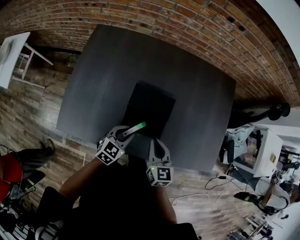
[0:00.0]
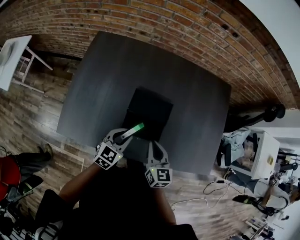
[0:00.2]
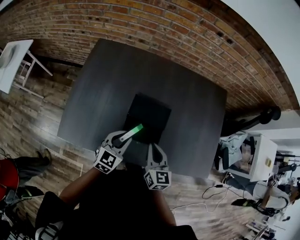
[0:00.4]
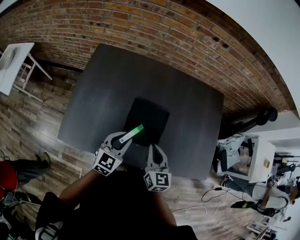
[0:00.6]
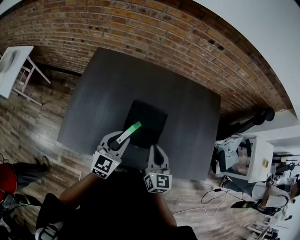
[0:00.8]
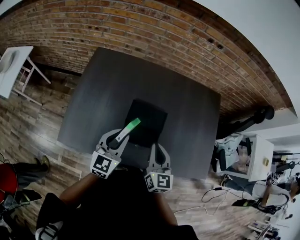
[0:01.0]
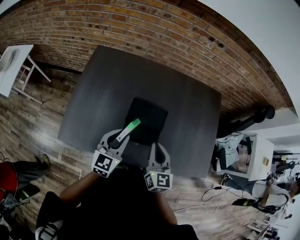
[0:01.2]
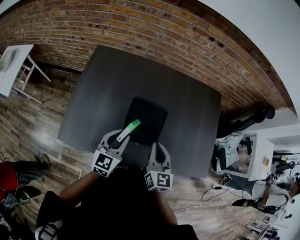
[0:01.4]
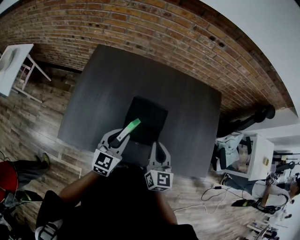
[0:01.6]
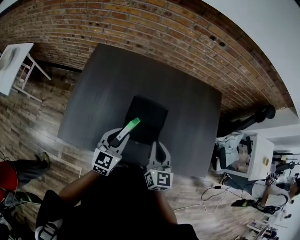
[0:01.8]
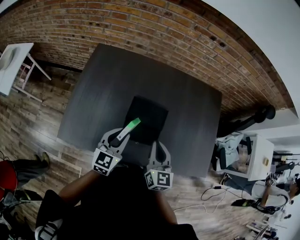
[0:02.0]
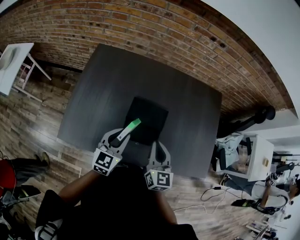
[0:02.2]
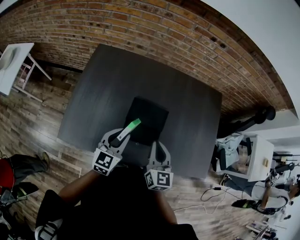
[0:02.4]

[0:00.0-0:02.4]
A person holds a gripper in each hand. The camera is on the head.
0.0 to 1.2 s: The grippers both shift upward by approximately 15 cm. The left gripper rotates approximately 30 degrees.
1.2 to 2.4 s: There are only small adjustments of the grippers.

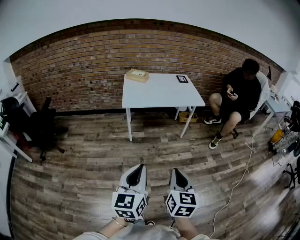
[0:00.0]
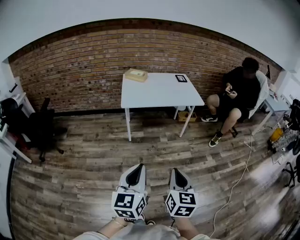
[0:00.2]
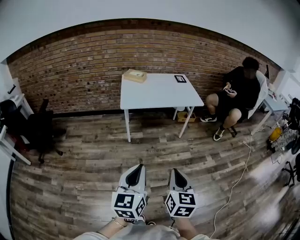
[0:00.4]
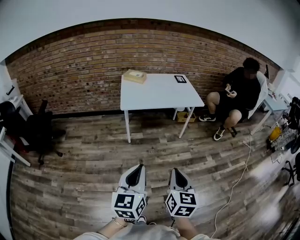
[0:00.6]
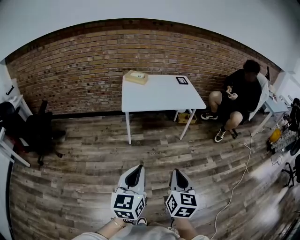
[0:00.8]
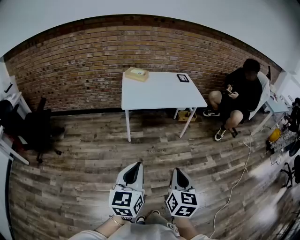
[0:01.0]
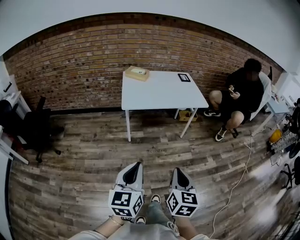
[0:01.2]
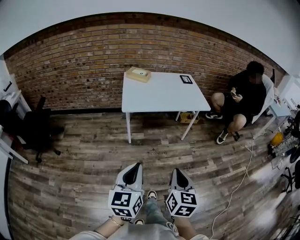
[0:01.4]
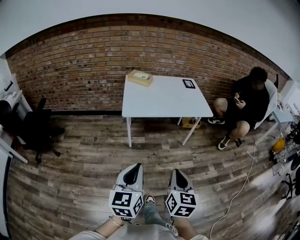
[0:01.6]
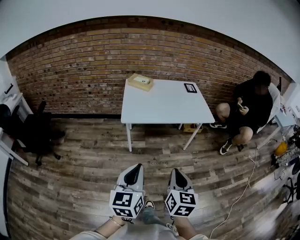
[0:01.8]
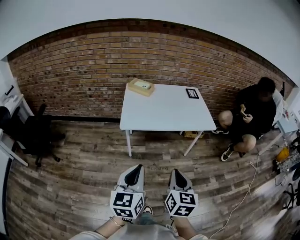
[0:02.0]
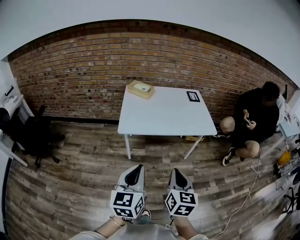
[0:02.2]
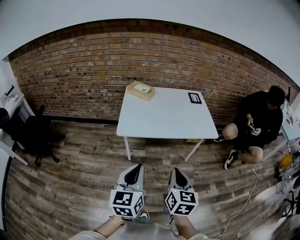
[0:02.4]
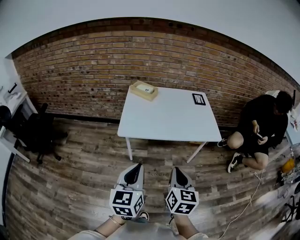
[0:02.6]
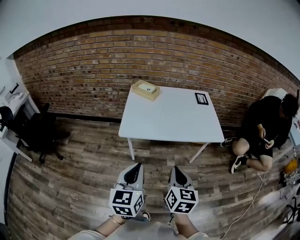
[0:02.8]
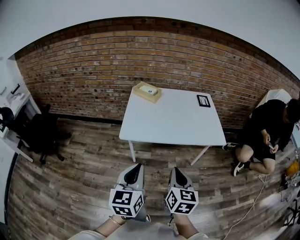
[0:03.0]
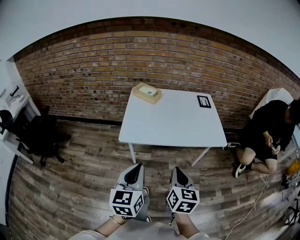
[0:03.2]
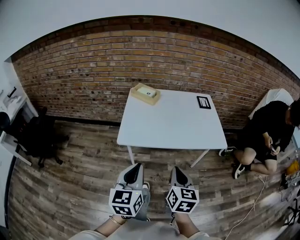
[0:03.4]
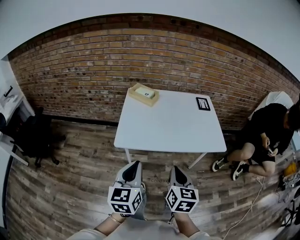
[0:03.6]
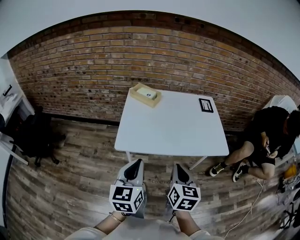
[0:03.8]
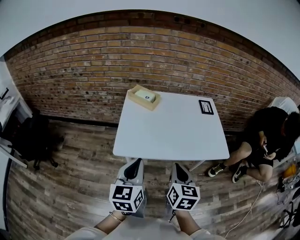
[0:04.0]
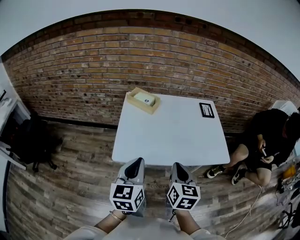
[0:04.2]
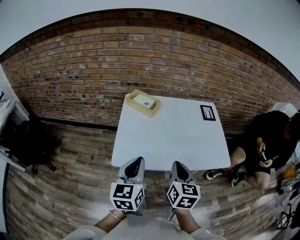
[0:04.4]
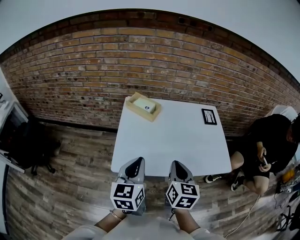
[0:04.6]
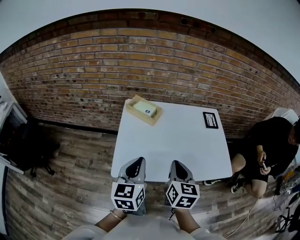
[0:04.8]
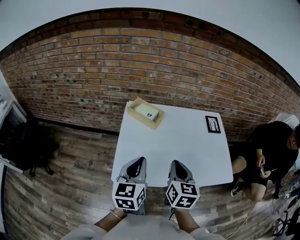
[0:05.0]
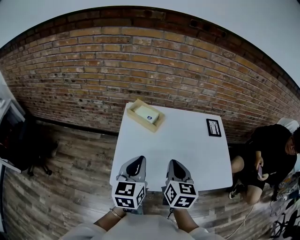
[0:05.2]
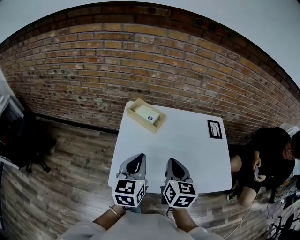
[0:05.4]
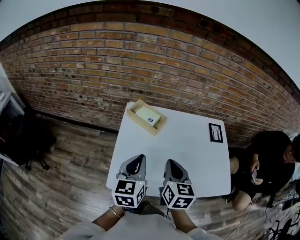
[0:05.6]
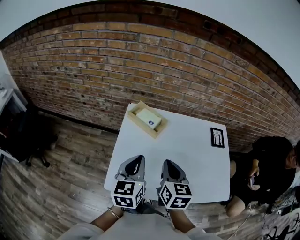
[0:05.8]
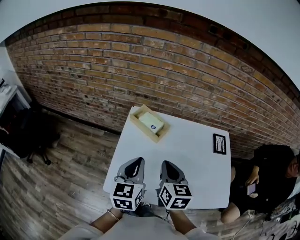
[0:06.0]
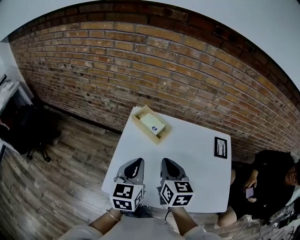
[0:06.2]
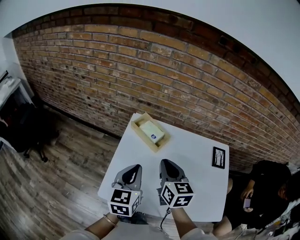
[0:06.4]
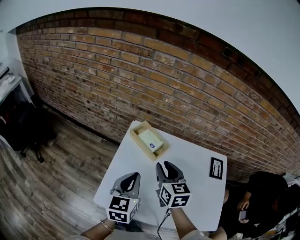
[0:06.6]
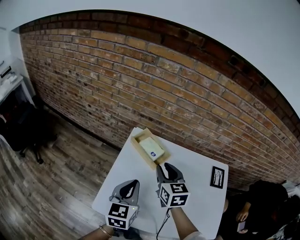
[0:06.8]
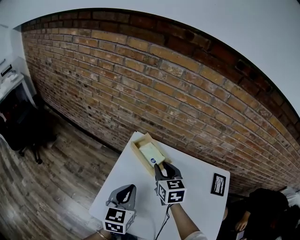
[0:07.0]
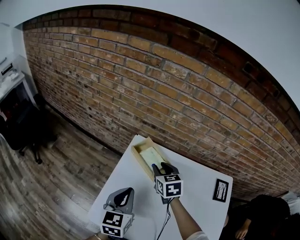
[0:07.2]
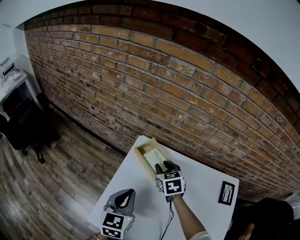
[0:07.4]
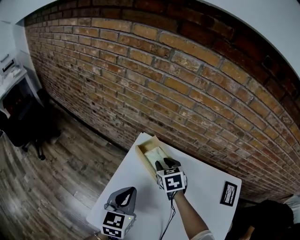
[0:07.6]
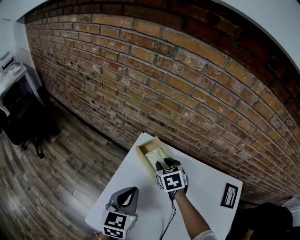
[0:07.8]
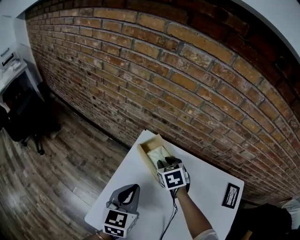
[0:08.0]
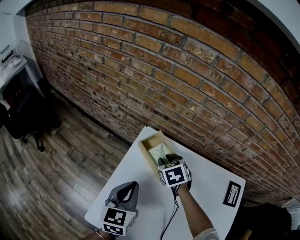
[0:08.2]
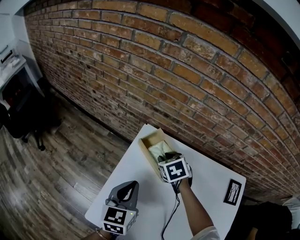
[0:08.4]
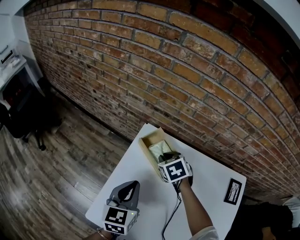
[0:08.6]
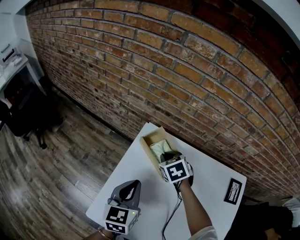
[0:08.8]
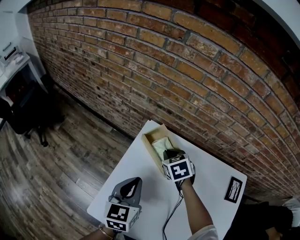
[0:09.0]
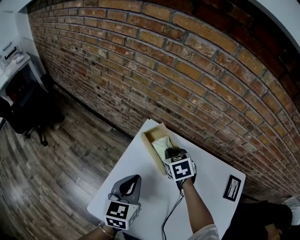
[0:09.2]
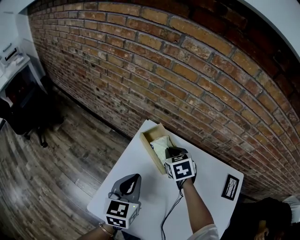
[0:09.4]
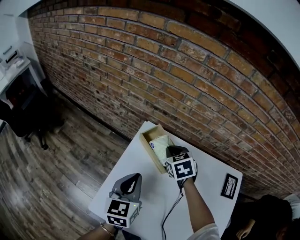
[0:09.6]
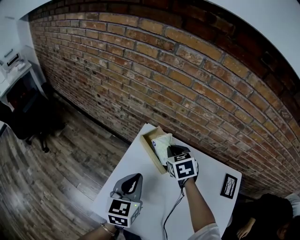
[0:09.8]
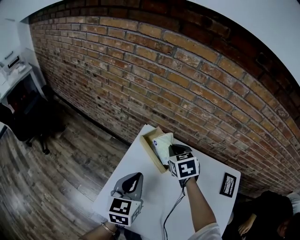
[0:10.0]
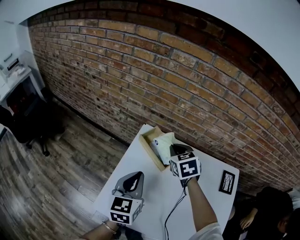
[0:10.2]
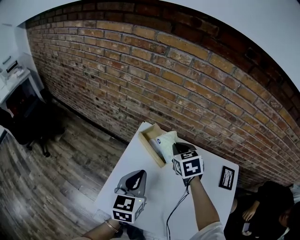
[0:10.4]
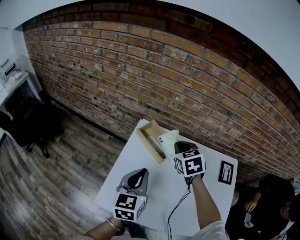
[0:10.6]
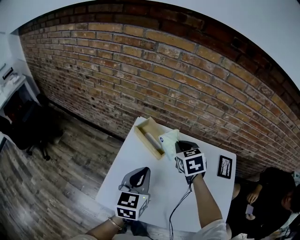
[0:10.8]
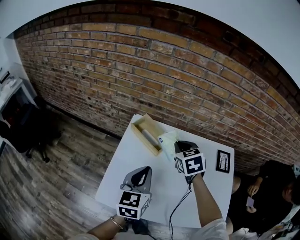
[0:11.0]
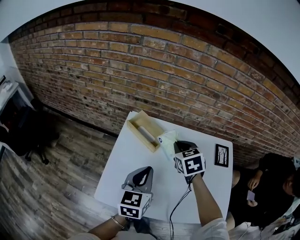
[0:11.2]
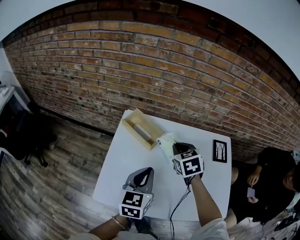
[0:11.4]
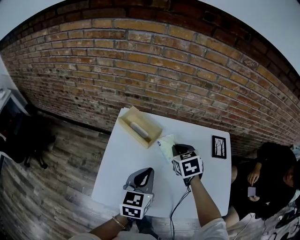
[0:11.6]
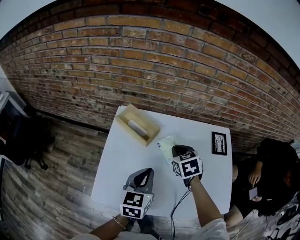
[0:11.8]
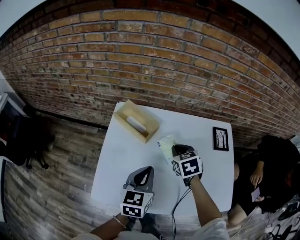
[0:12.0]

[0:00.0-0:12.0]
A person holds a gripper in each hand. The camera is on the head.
0.0 to 1.6 s: The two grippers go some 15 cm forward.
1.6 to 3.0 s: The grippers both shift forward by roughly 25 cm.
3.0 to 4.4 s: Both grippers move forward, approximately 25 cm.
4.4 to 6.0 s: Both grippers move forward, some 20 cm.
6.0 to 7.6 s: The right gripper goes some 30 cm forward and downward, swivels roughly 40 degrees, and opens its fingers. Meanwhile the left gripper moves forward and downward, about 15 cm.
7.6 to 9.0 s: The right gripper closes up.
9.0 to 10.4 s: The right gripper travels upward by approximately 15 cm, while the left gripper travels upward by roughly 5 cm.
10.4 to 12.0 s: The left gripper shifts some 15 cm to the right, downward and backward. Meanwhile the right gripper shifts roughly 20 cm to the right, backward and downward.

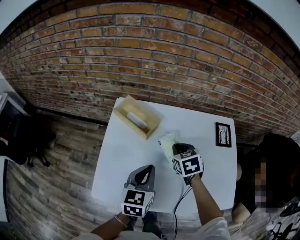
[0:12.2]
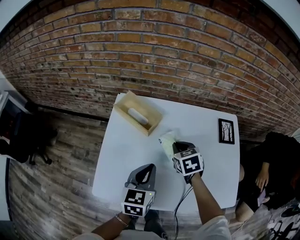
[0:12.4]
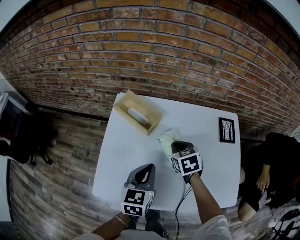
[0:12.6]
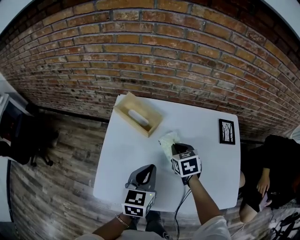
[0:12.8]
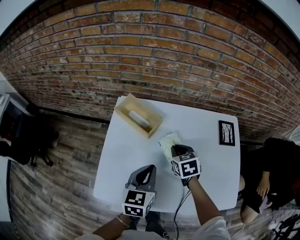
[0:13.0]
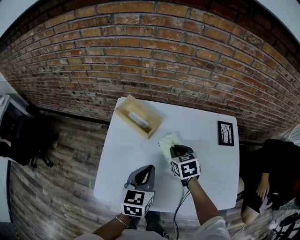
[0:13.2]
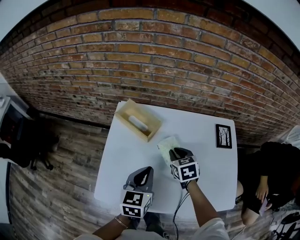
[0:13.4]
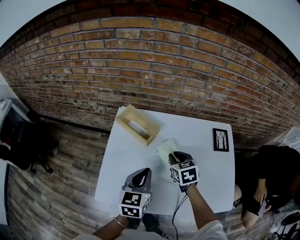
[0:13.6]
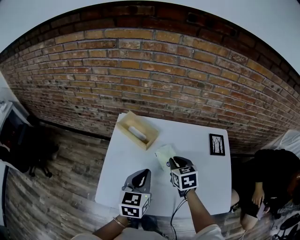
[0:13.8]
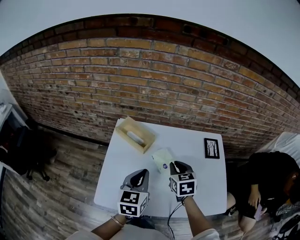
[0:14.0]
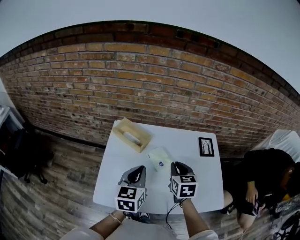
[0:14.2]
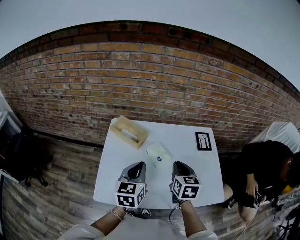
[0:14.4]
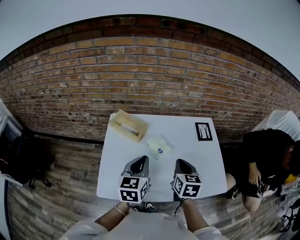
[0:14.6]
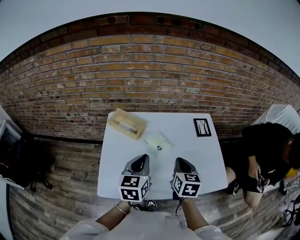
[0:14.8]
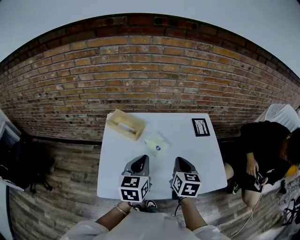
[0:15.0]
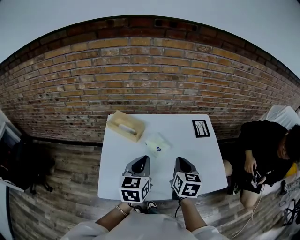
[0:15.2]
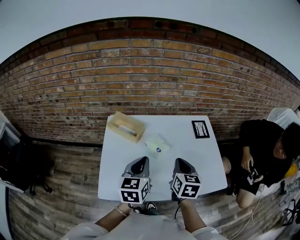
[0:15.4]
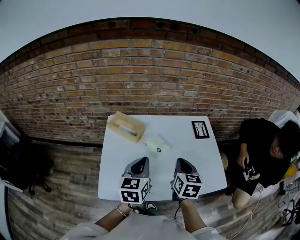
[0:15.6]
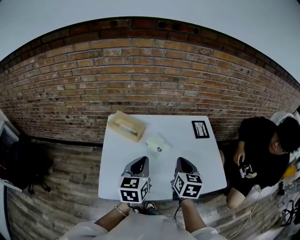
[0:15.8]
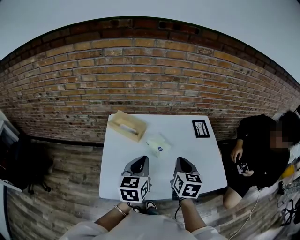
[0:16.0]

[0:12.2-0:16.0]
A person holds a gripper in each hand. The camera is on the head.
12.2 to 13.4 s: The grippers move only a little.
13.4 to 14.8 s: The left gripper heads upward, covering approximately 10 cm; the right gripper travels backward, upward and to the right by roughly 20 cm, and turns by about 30 degrees.
14.8 to 16.0 s: The grippers stay close to where they were, moving slightly.

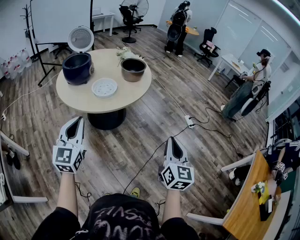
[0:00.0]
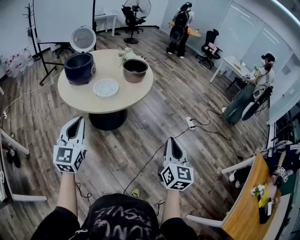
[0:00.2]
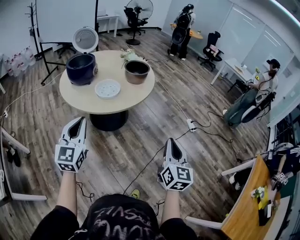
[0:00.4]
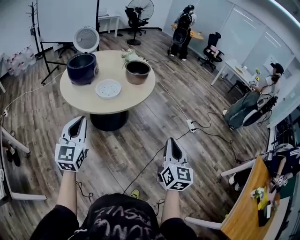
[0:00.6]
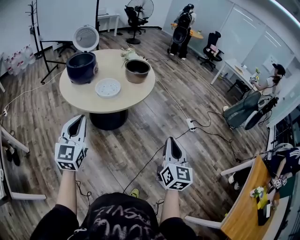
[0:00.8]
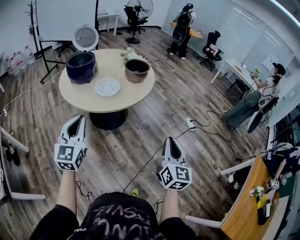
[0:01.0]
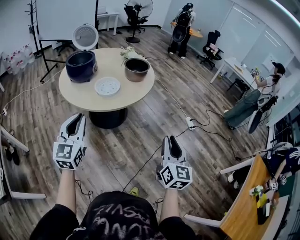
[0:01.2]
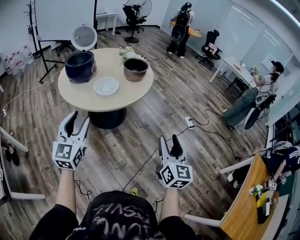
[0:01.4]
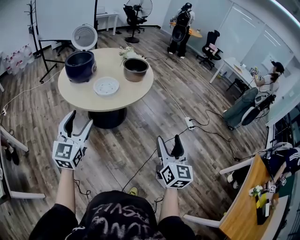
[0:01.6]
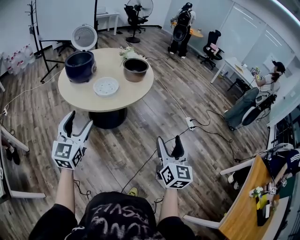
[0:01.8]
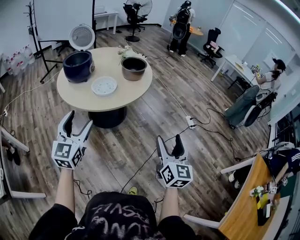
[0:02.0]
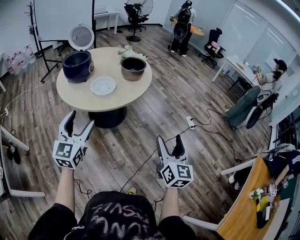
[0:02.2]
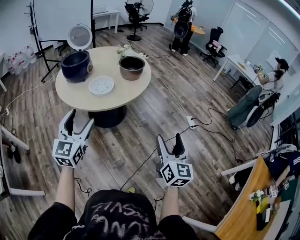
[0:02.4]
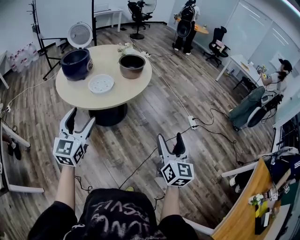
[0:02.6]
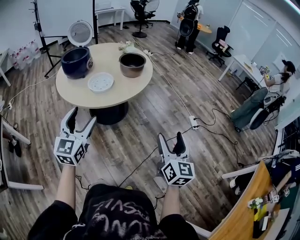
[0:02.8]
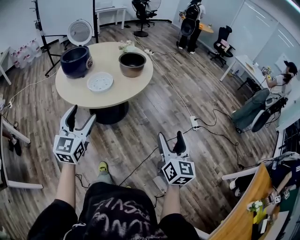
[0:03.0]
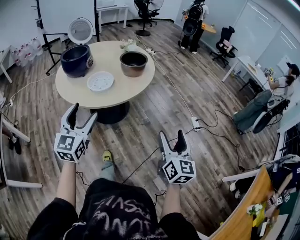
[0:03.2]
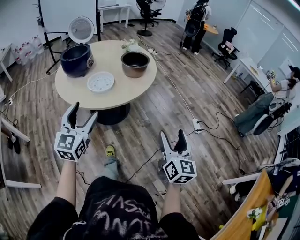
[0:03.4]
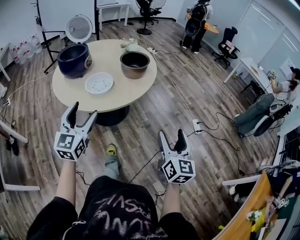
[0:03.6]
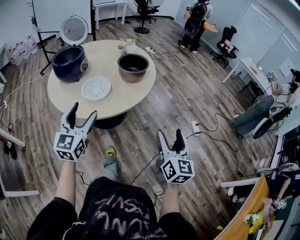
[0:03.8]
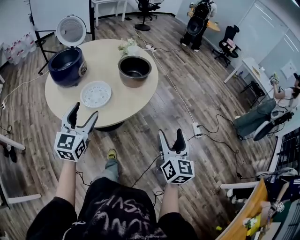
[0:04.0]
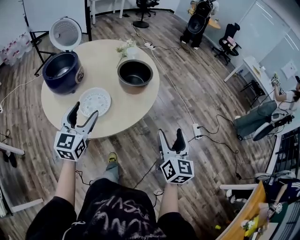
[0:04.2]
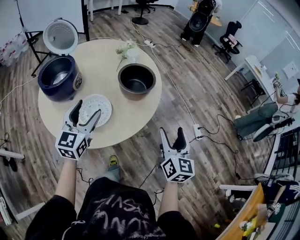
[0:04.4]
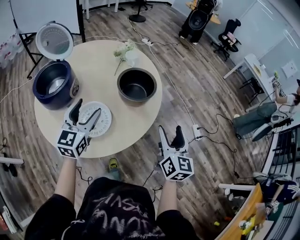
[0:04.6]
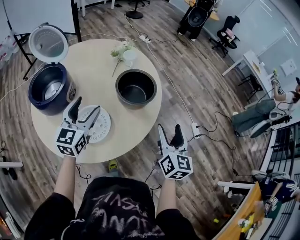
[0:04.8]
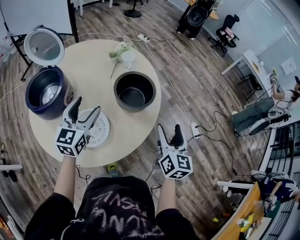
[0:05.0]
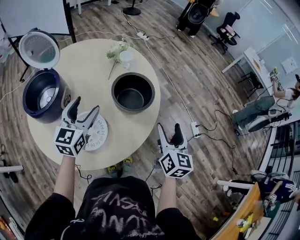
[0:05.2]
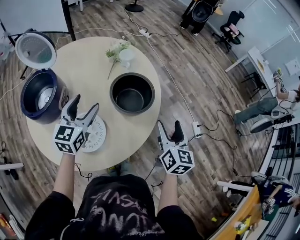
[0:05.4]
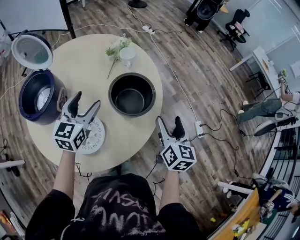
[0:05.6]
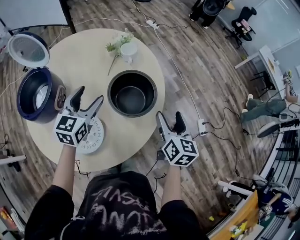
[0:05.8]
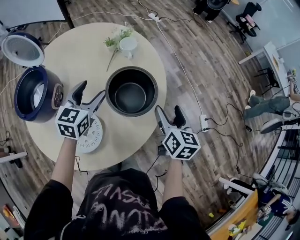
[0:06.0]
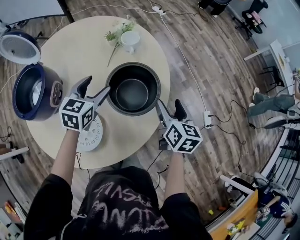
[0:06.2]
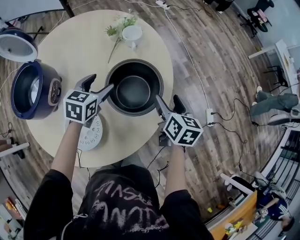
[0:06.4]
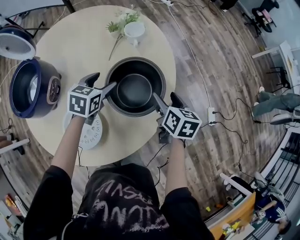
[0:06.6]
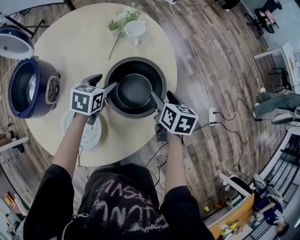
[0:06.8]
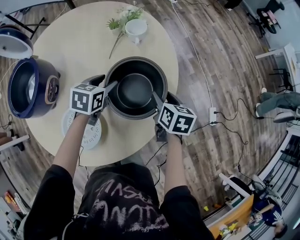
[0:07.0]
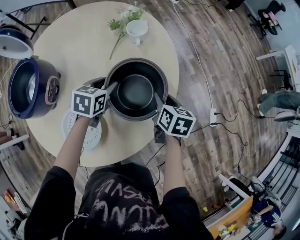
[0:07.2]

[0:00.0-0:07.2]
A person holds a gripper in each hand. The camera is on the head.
0.0 to 1.4 s: The right gripper opens its fingers. Meanwhile the left gripper opens up.
1.4 to 2.8 s: The right gripper shifts some 10 cm to the right and forward, and opens its fingers, while the left gripper heads to the right, covering roughly 10 cm, and opens.
2.8 to 4.4 s: Both grippers travel together forward, roughly 35 cm.
4.4 to 5.8 s: The two grippers go some 25 cm forward.
5.8 to 7.2 s: The grippers both shift downward and forward by some 20 cm. The left gripper turns by some 30 degrees, and closes; the right gripper turns by approximately 30 degrees, and closes up.
